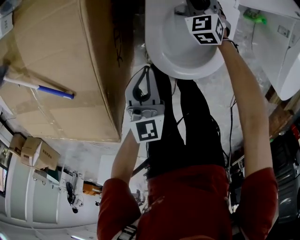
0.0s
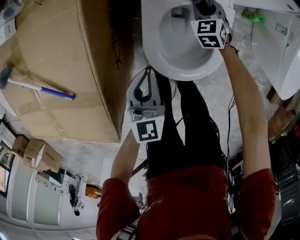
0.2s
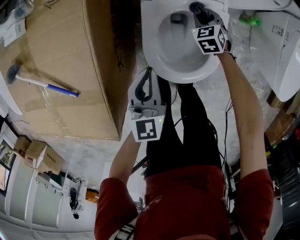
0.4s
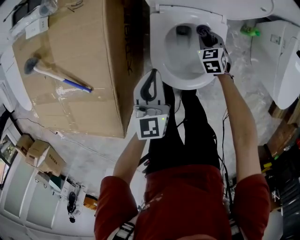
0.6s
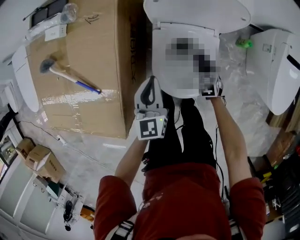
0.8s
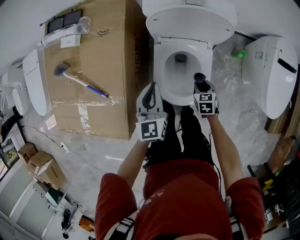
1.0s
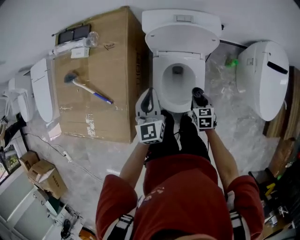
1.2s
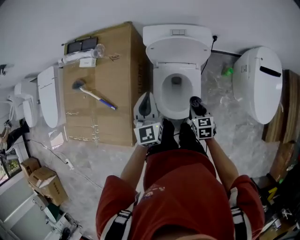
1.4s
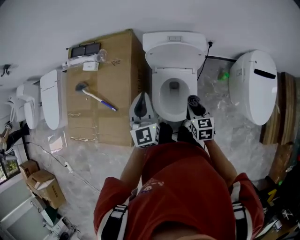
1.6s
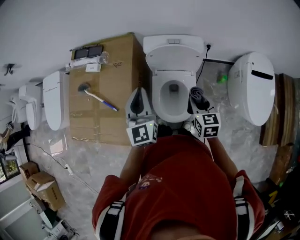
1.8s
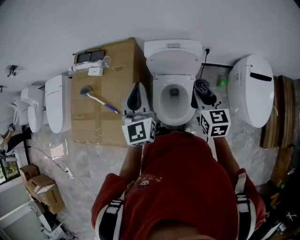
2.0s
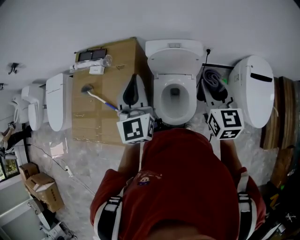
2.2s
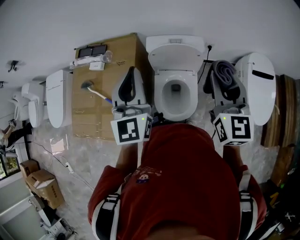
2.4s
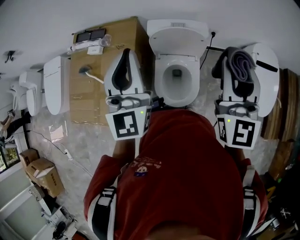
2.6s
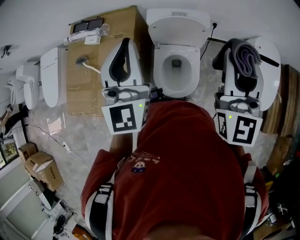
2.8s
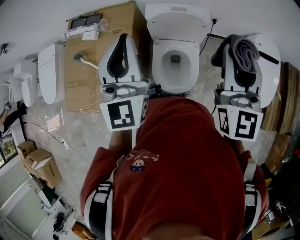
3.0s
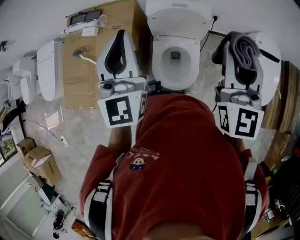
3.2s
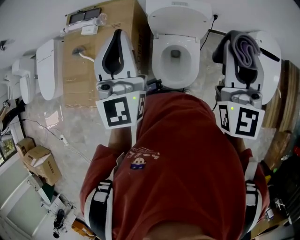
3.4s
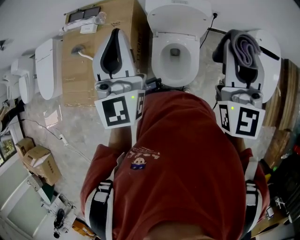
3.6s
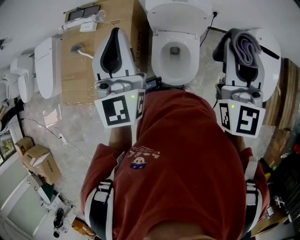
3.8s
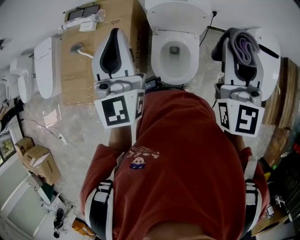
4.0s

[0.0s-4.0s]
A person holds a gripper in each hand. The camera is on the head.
0.0s to 1.4s: The right gripper shifts approximately 35 cm upward and backward, and changes its angle by roughly 40 degrees; the left gripper goes about 30 cm upward.
1.4s to 2.6s: The right gripper goes approximately 50 cm upward, and tips its fingers upward by approximately 50 degrees; the left gripper heads upward, covering roughly 30 cm, and swivels approximately 30 degrees.
2.6s to 4.0s: The left gripper changes place by some 5 cm.

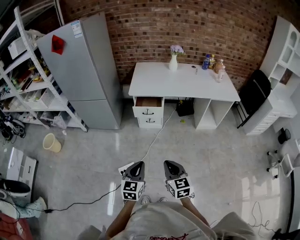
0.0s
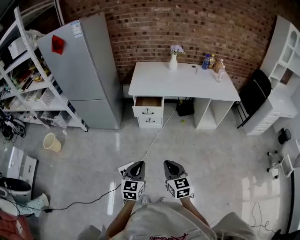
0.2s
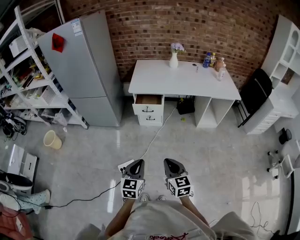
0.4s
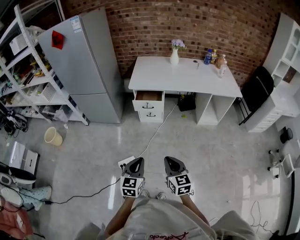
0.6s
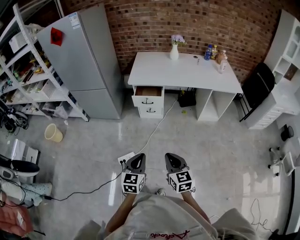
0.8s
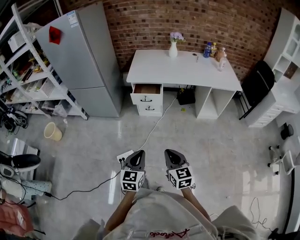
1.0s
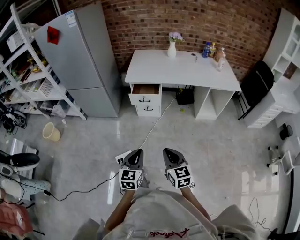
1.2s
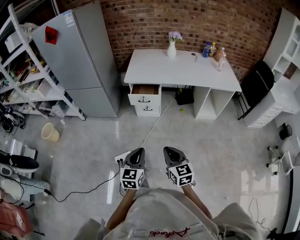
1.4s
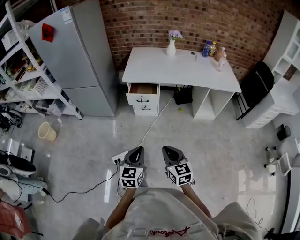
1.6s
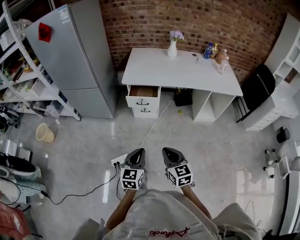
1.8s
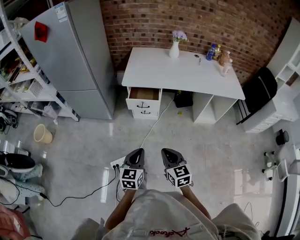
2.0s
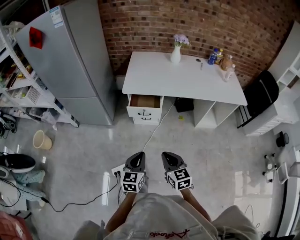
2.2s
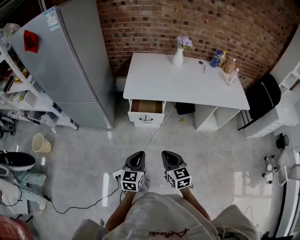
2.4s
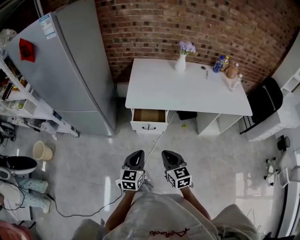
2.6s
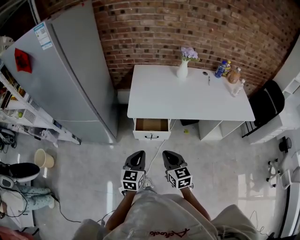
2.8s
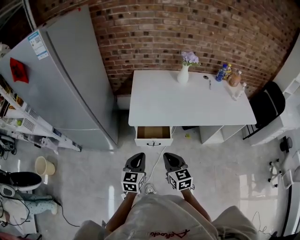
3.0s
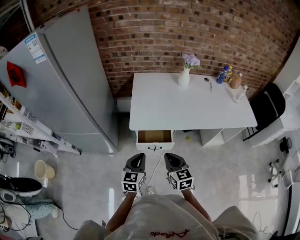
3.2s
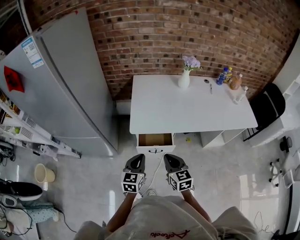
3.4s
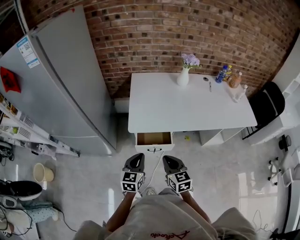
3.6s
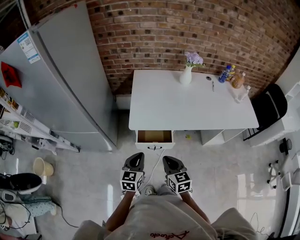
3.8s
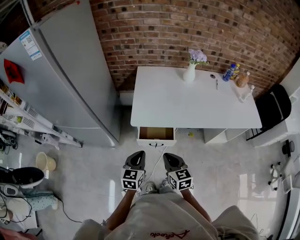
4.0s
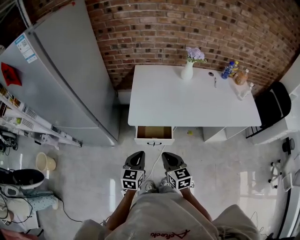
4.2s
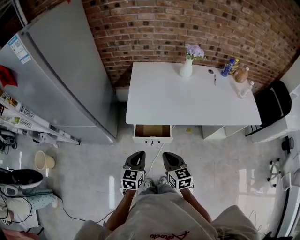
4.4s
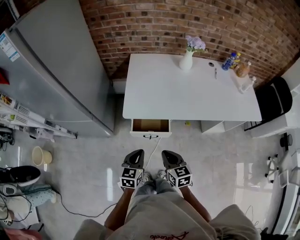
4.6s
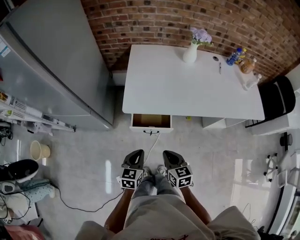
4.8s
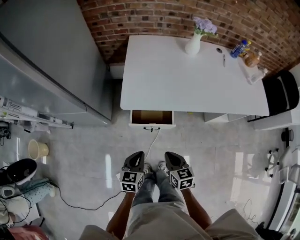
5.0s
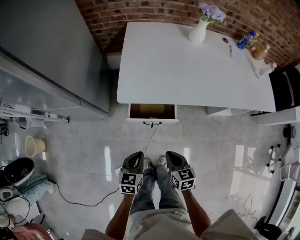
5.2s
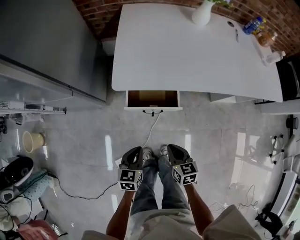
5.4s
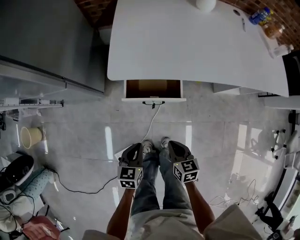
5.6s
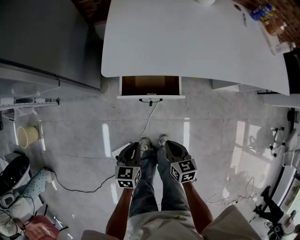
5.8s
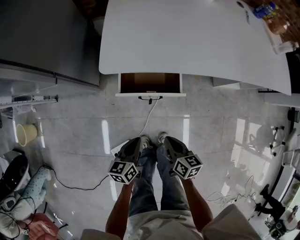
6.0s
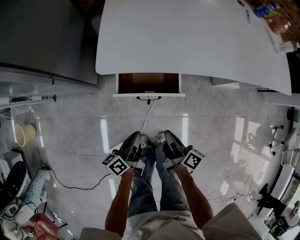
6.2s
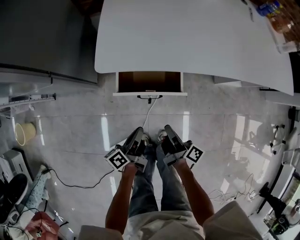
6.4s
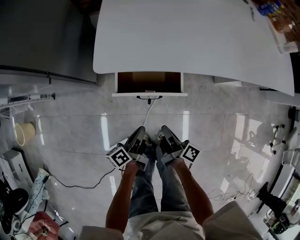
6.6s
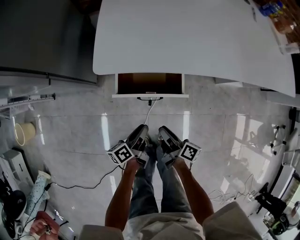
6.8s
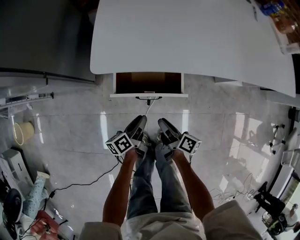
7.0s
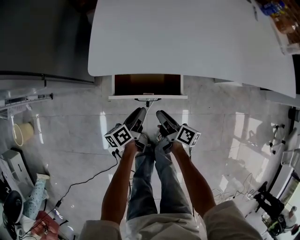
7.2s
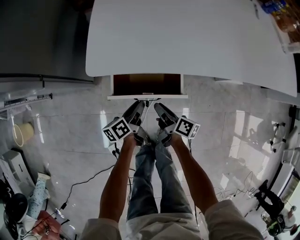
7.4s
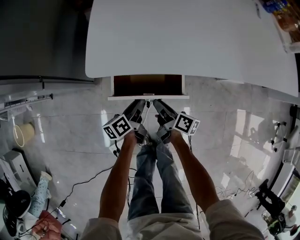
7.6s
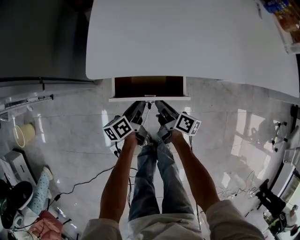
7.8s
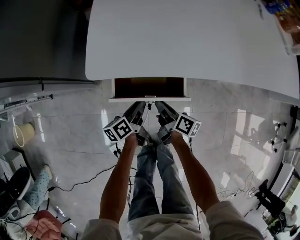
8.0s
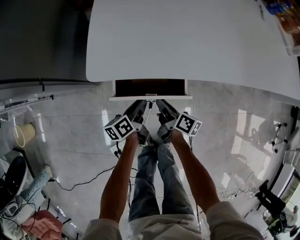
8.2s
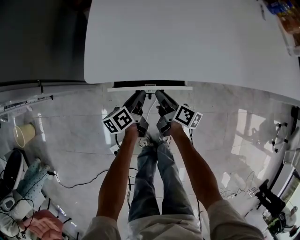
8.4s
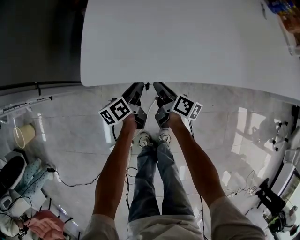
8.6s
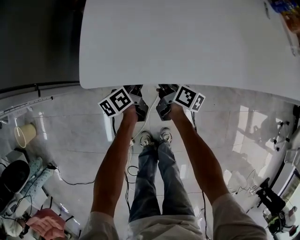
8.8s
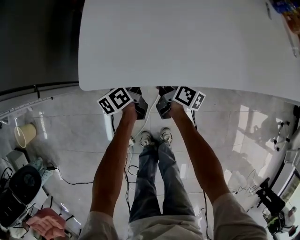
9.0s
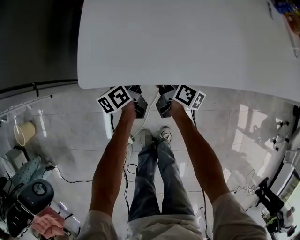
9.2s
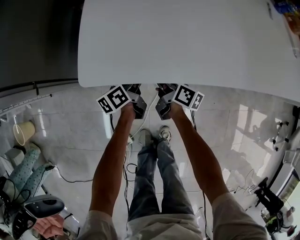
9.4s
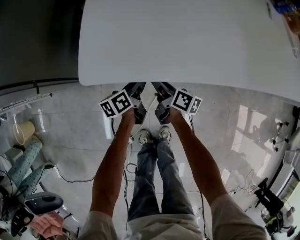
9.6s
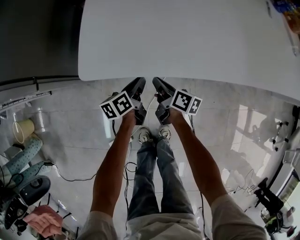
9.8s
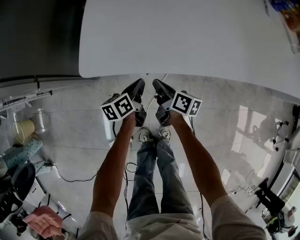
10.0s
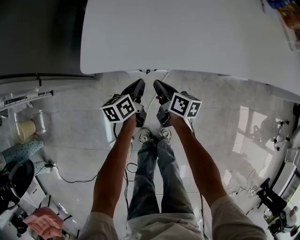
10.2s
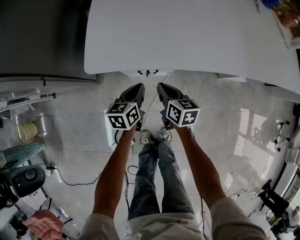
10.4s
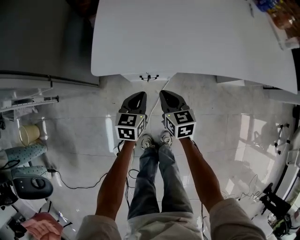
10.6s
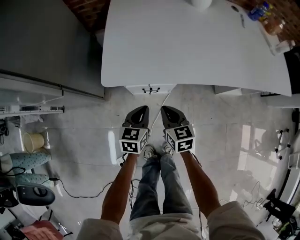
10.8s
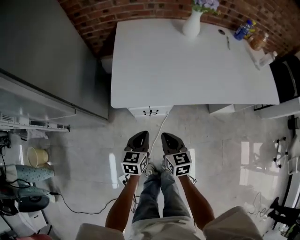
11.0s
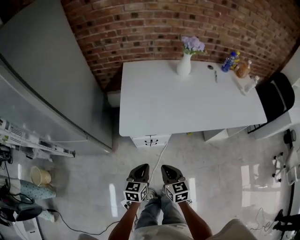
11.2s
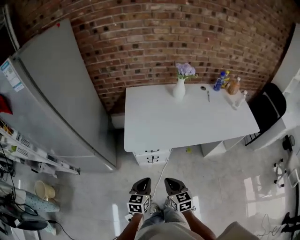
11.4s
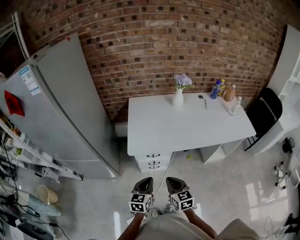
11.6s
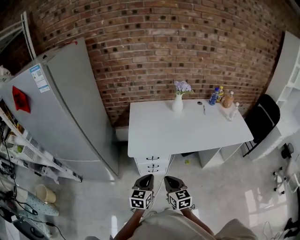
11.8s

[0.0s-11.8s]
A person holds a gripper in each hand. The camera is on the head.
0.0s to 1.4s: The left gripper is displaced to the right by roughly 5 cm. The right gripper moves about 5 cm.
1.4s to 3.0s: Both grippers are carried forward, approximately 40 cm.
3.0s to 4.4s: The left gripper moves roughly 5 cm; the right gripper shifts by approximately 5 cm.
4.4s to 6.0s: Both grippers move downward, about 25 cm. The left gripper rotates some 30 degrees. The right gripper rotates roughly 30 degrees.
6.0s to 7.4s: The grippers both shift forward and downward by some 20 cm. The left gripper swivels about 30 degrees, and opens. Meanwhile the right gripper turns by roughly 30 degrees, and opens.
7.4s to 8.8s: The grippers both shift forward by roughly 15 cm.
8.8s to 10.4s: The two grippers go approximately 10 cm backward. The left gripper rotates some 30 degrees, and closes. The right gripper turns by some 30 degrees.
10.4s to 11.8s: Both grippers move upward and backward, roughly 40 cm. The right gripper swivels some 30 degrees. Meanwhile the left gripper rotates some 30 degrees.

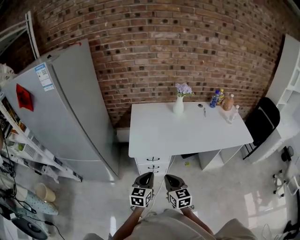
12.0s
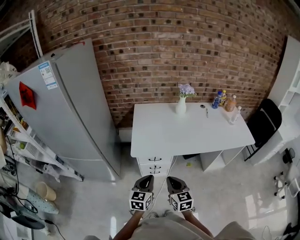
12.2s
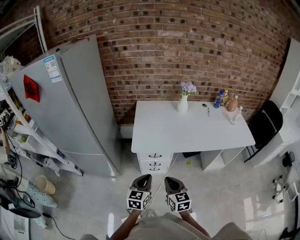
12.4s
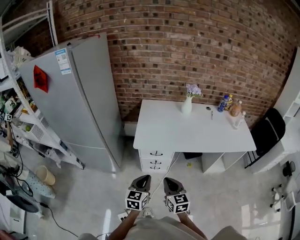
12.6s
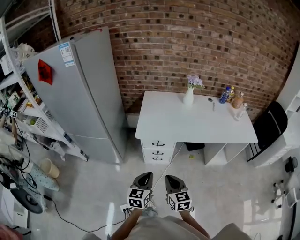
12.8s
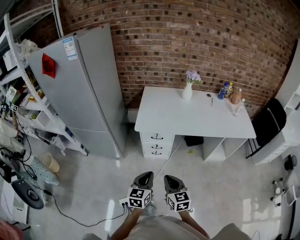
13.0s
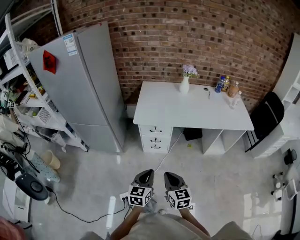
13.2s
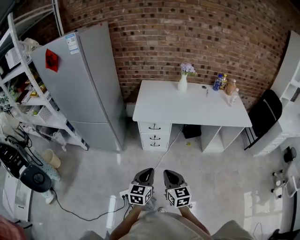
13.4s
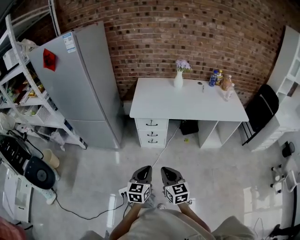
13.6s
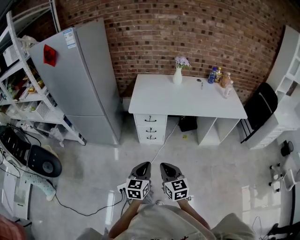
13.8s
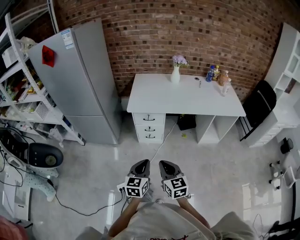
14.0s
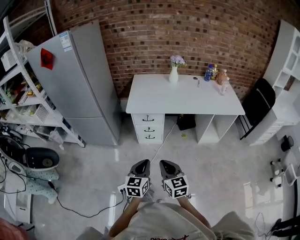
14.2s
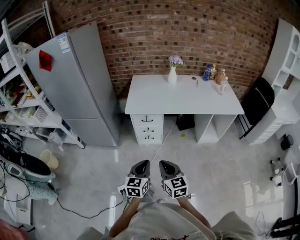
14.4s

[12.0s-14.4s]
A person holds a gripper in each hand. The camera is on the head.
12.0s to 13.2s: The grippers both shift backward by approximately 25 cm.
13.2s to 14.4s: The grippers both shift backward by approximately 5 cm.

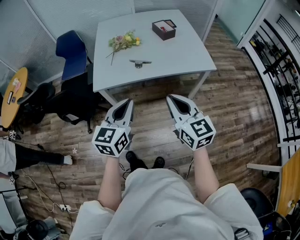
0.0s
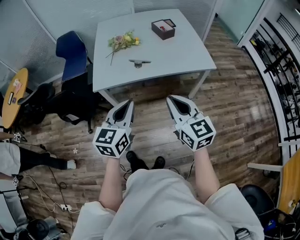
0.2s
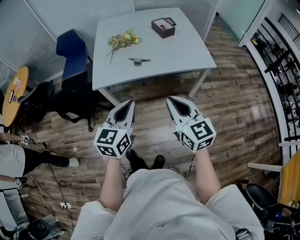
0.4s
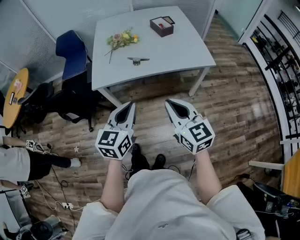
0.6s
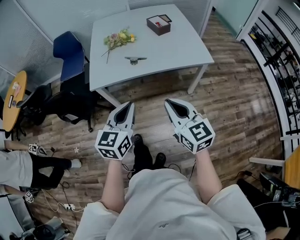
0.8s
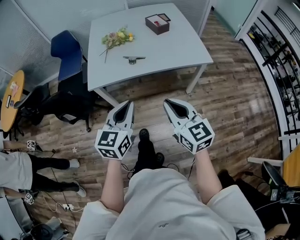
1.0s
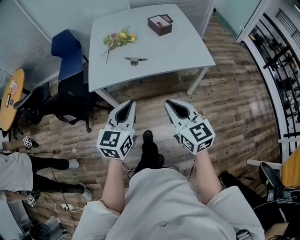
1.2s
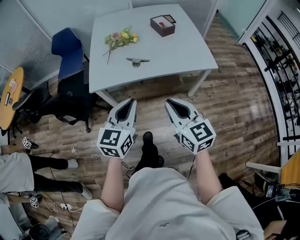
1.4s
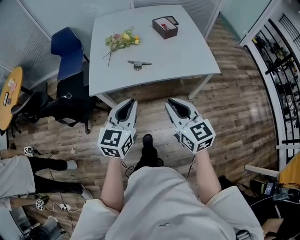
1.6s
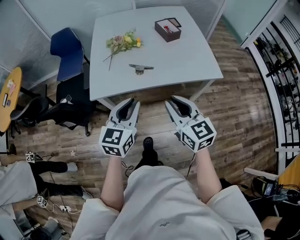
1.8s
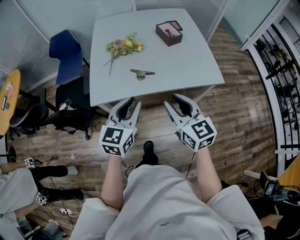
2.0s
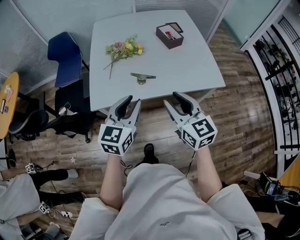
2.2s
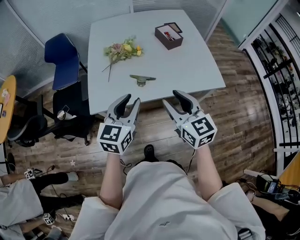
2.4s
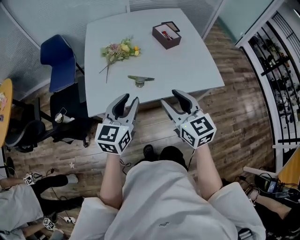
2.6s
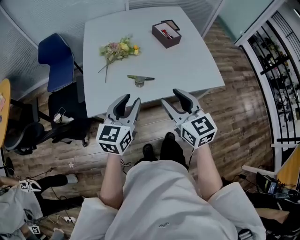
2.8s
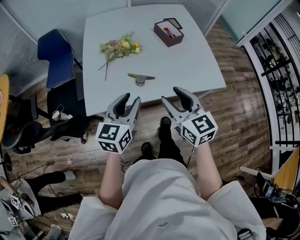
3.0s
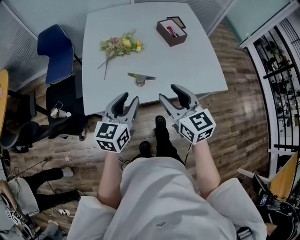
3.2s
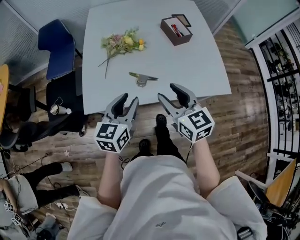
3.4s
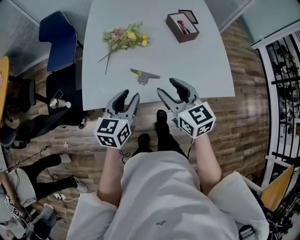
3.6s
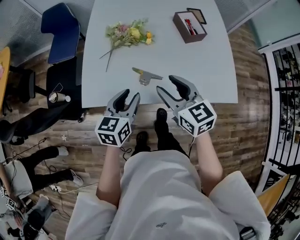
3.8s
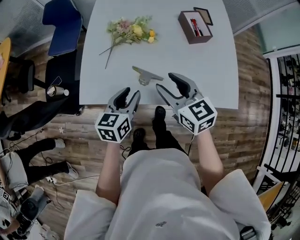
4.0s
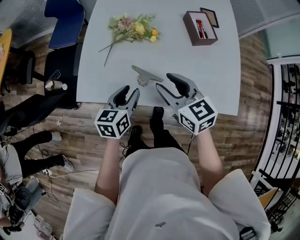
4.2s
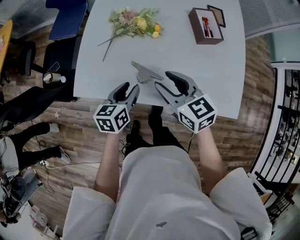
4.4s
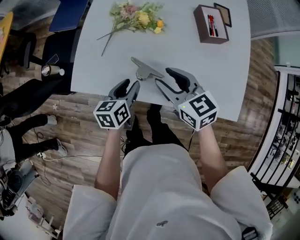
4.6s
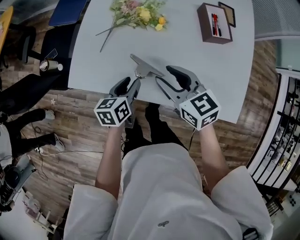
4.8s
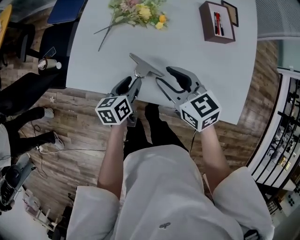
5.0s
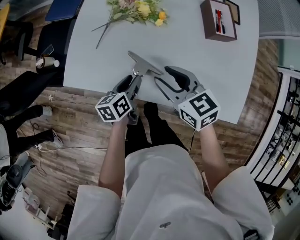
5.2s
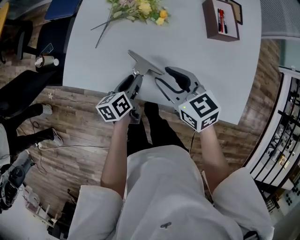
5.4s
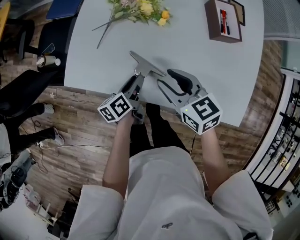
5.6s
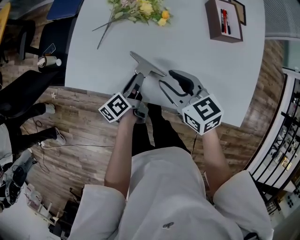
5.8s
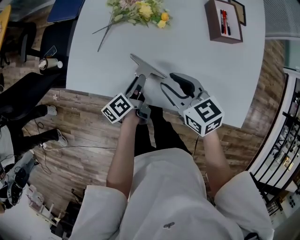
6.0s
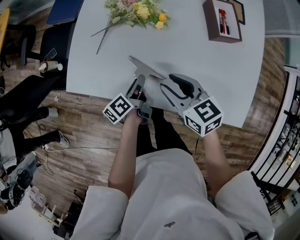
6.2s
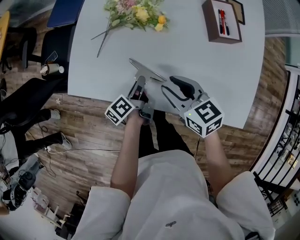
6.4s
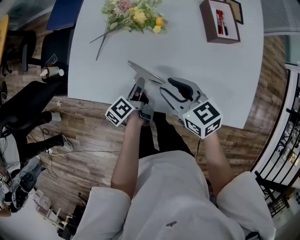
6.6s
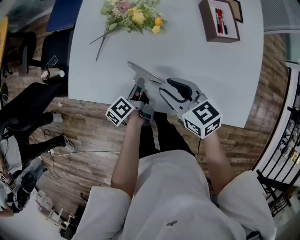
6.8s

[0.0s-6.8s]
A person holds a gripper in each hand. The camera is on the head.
0.0s to 1.4s: The grippers stay close to where they were, moving slightly.
1.4s to 2.8s: Both grippers move forward, roughly 20 cm. The left gripper opens, while the right gripper opens up.
2.8s to 4.0s: The left gripper goes about 15 cm downward and forward, and rotates approximately 30 degrees; the right gripper travels forward and downward by roughly 20 cm, and swivels roughly 20 degrees.
4.0s to 5.4s: The right gripper heads downward, covering approximately 10 cm. The left gripper travels downward by about 15 cm, and turns by some 40 degrees.
5.4s to 6.8s: The left gripper turns by approximately 30 degrees, and closes up.
